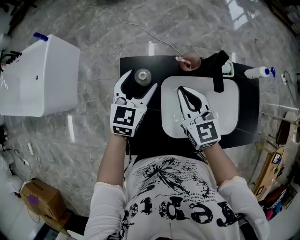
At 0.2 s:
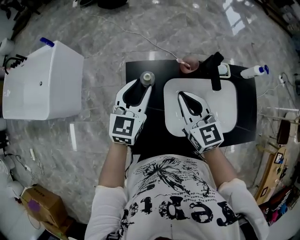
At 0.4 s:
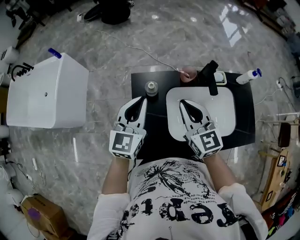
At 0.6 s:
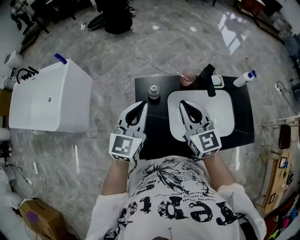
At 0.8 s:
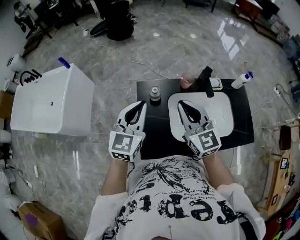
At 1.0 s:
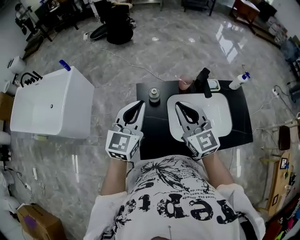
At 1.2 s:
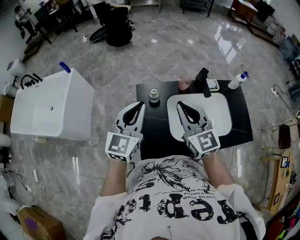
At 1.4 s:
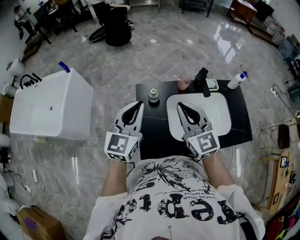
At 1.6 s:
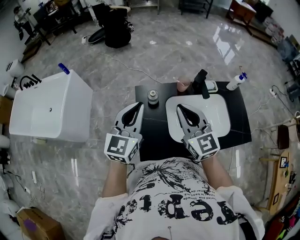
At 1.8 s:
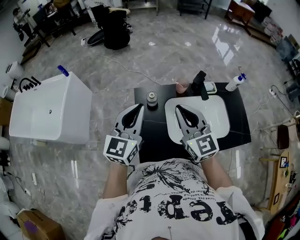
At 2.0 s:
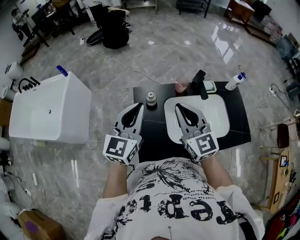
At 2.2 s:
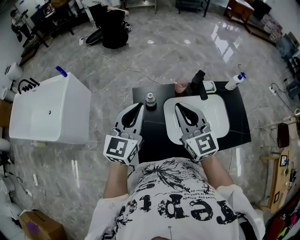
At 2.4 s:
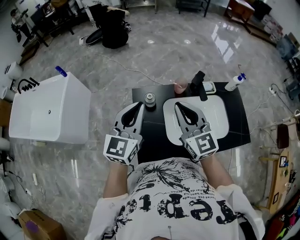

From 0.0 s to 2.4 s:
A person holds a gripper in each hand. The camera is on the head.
From 0.0 s to 1.2 s: The grippers both shift upward and backward by some 25 cm. The left gripper closes its fingers.
From 1.2 s to 2.4 s: The grippers make only small movements.

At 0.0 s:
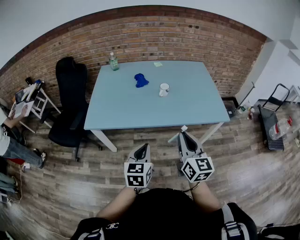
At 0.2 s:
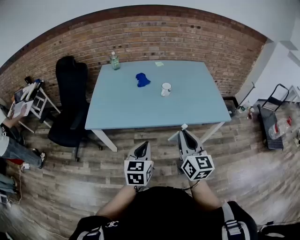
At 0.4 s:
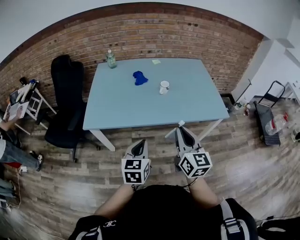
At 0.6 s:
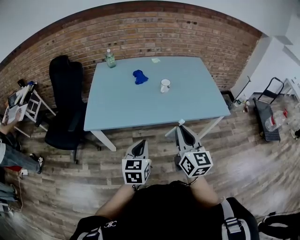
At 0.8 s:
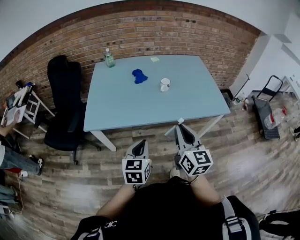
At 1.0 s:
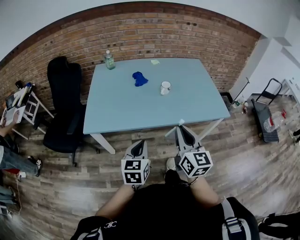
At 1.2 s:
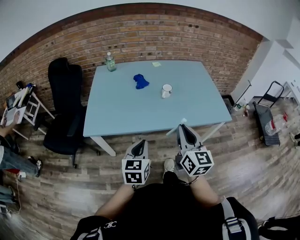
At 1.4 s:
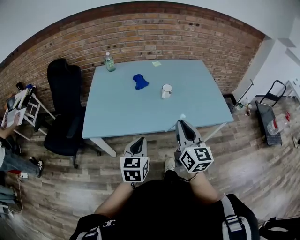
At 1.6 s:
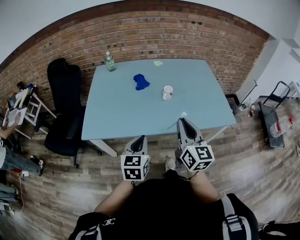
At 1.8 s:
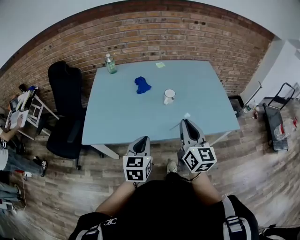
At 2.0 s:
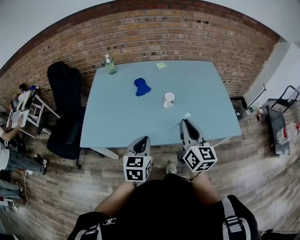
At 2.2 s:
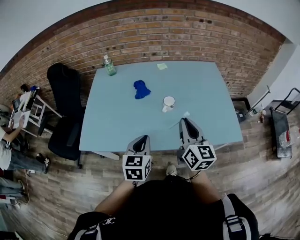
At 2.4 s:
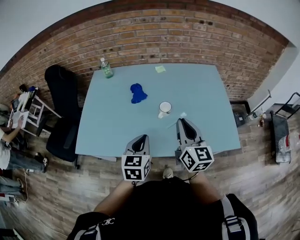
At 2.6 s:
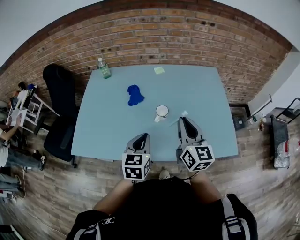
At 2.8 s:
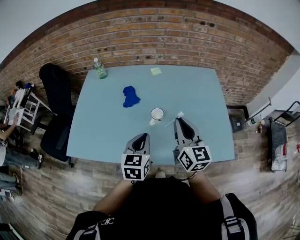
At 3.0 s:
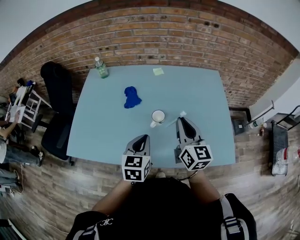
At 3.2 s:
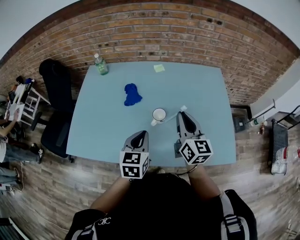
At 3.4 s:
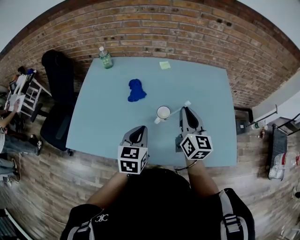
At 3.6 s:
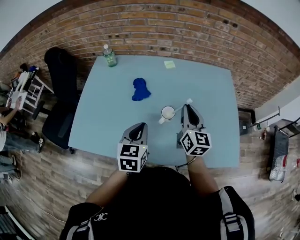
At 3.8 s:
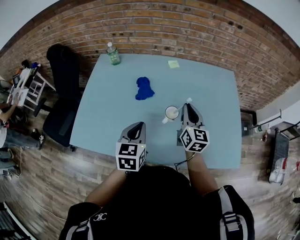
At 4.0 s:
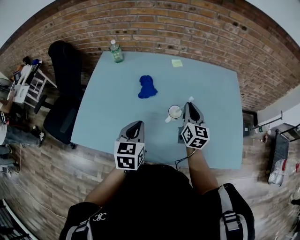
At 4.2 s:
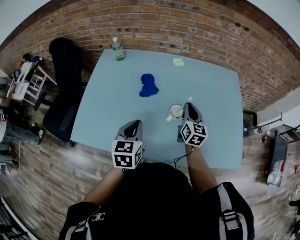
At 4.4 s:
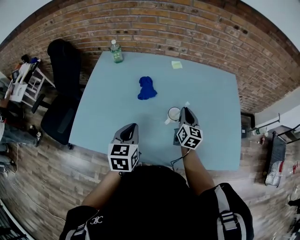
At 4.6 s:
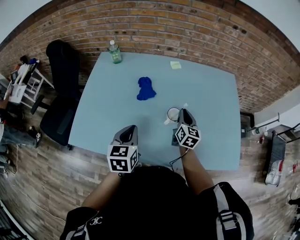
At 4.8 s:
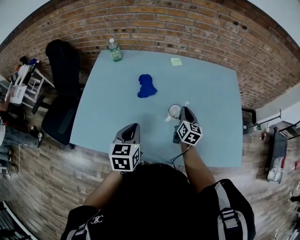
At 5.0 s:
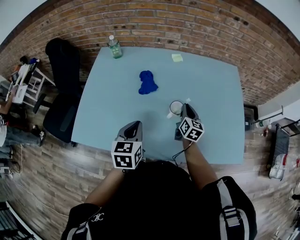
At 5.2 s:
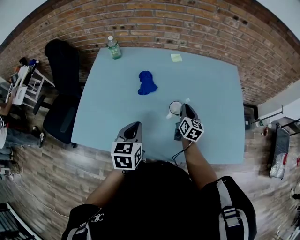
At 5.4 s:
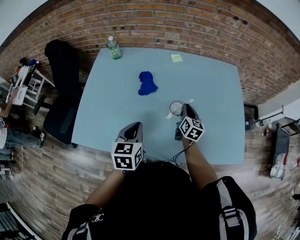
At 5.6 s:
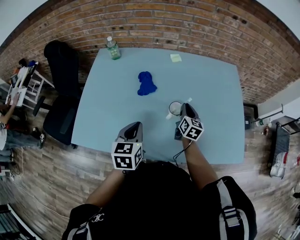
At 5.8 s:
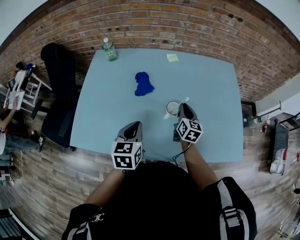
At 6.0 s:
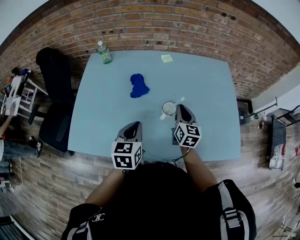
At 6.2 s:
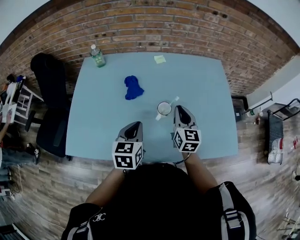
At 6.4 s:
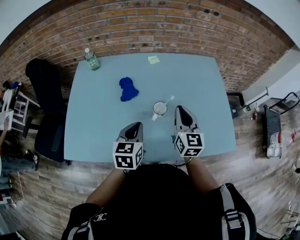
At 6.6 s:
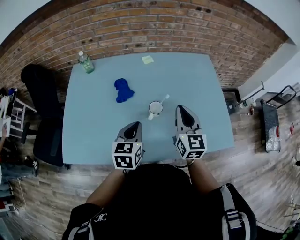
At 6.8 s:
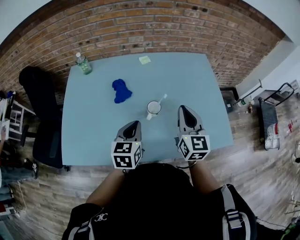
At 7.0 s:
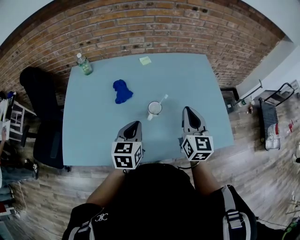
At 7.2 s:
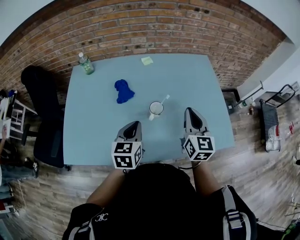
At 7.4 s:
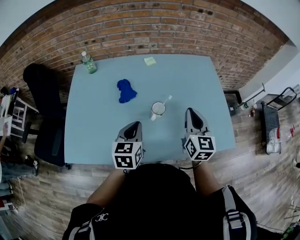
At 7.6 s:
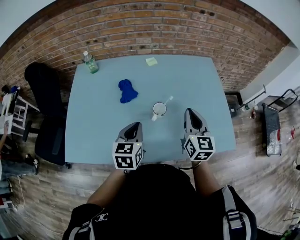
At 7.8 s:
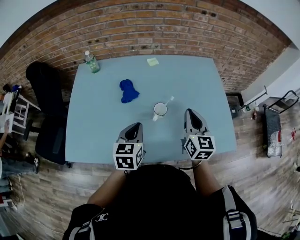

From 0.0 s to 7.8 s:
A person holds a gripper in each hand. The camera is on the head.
From 0.0 s to 1.6 s: The grippers both shift forward and to the left by approximately 15 cm.
From 1.6 s to 3.2 s: The right gripper travels forward by some 30 cm. Meanwhile the left gripper moves forward and to the right, roughly 30 cm.
From 3.2 s to 4.6 s: The left gripper heads to the left, covering approximately 10 cm. The right gripper is displaced downward and forward by about 20 cm.
From 4.6 s to 6.2 s: The left gripper goes roughly 5 cm to the right. The right gripper heads upward, covering about 5 cm.
From 6.2 s to 7.8 s: The right gripper goes some 10 cm upward and to the right.

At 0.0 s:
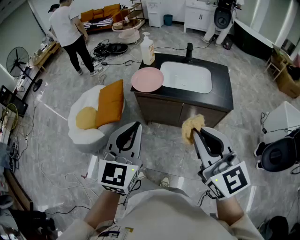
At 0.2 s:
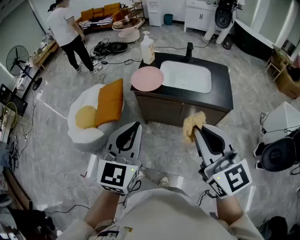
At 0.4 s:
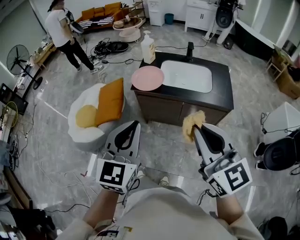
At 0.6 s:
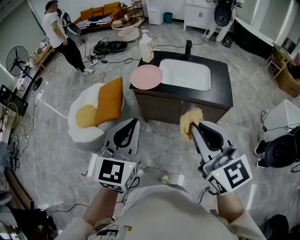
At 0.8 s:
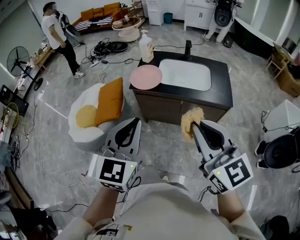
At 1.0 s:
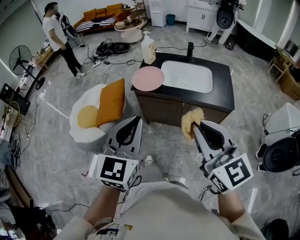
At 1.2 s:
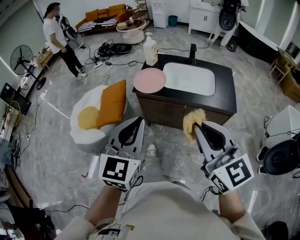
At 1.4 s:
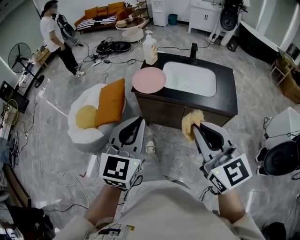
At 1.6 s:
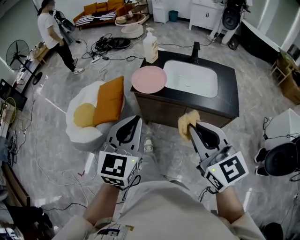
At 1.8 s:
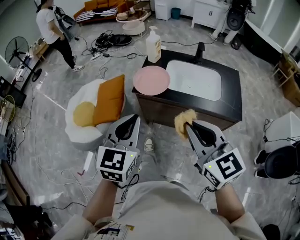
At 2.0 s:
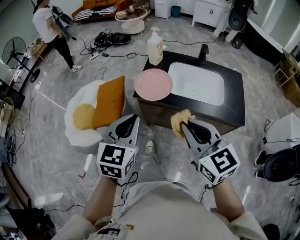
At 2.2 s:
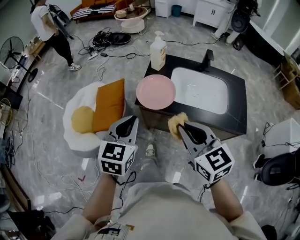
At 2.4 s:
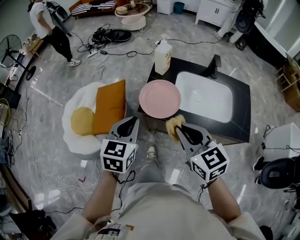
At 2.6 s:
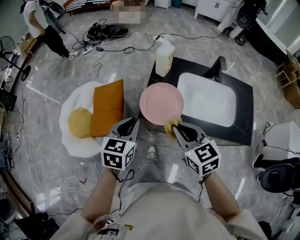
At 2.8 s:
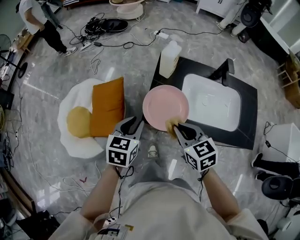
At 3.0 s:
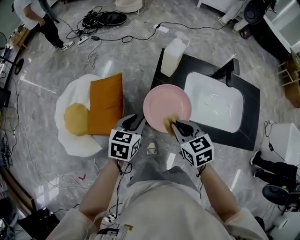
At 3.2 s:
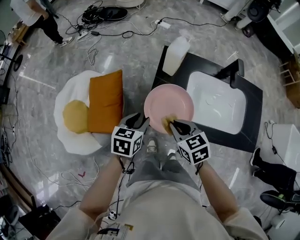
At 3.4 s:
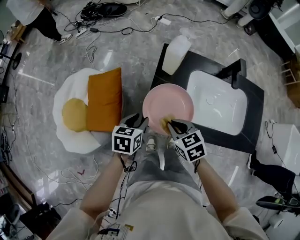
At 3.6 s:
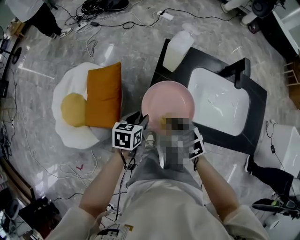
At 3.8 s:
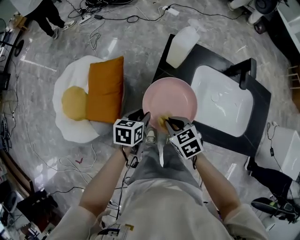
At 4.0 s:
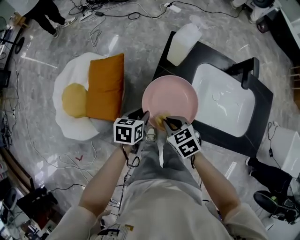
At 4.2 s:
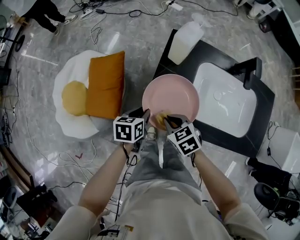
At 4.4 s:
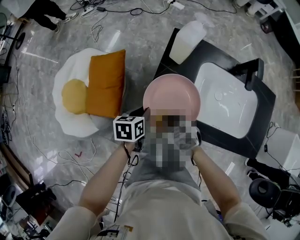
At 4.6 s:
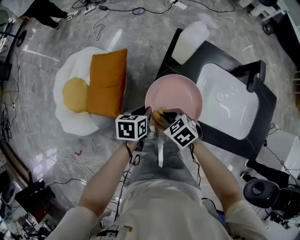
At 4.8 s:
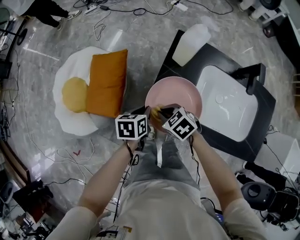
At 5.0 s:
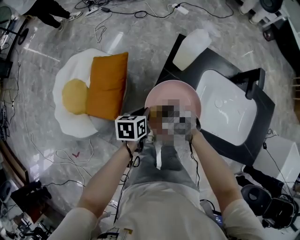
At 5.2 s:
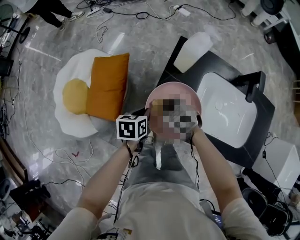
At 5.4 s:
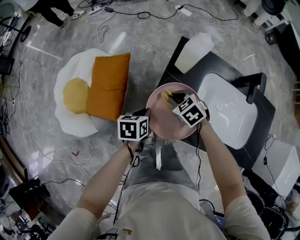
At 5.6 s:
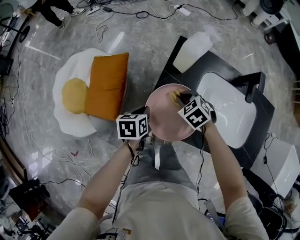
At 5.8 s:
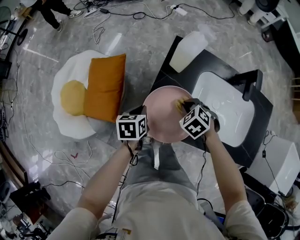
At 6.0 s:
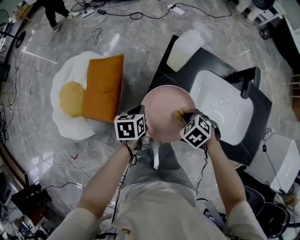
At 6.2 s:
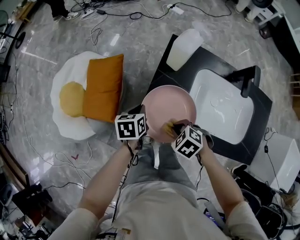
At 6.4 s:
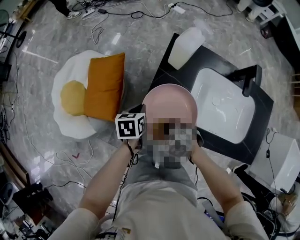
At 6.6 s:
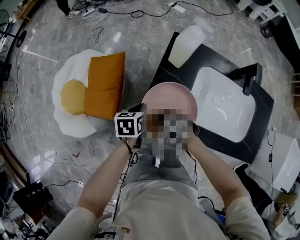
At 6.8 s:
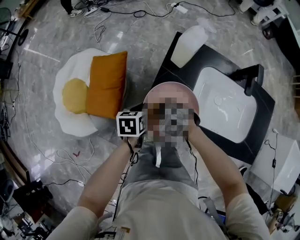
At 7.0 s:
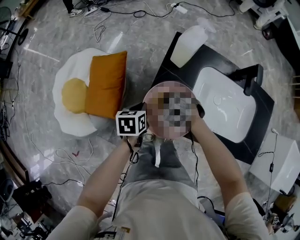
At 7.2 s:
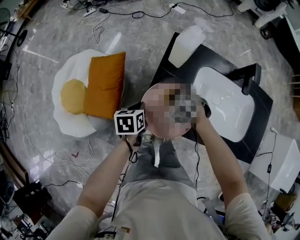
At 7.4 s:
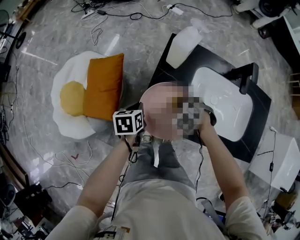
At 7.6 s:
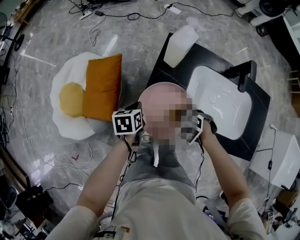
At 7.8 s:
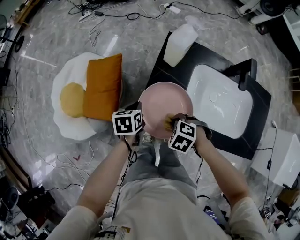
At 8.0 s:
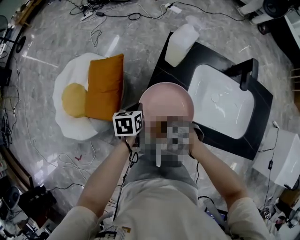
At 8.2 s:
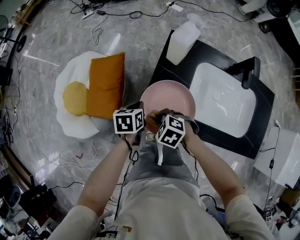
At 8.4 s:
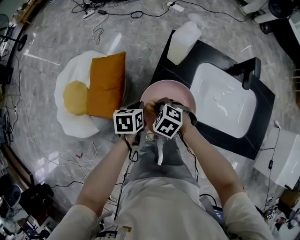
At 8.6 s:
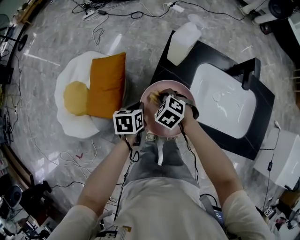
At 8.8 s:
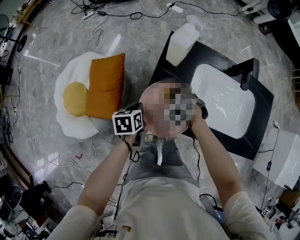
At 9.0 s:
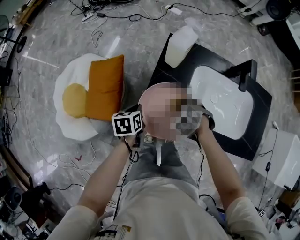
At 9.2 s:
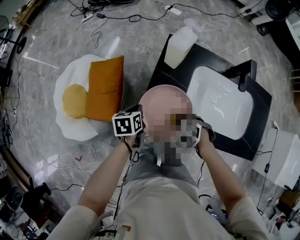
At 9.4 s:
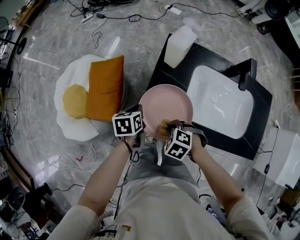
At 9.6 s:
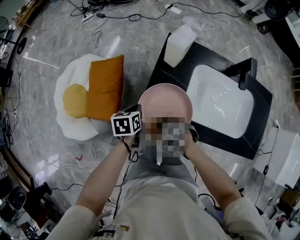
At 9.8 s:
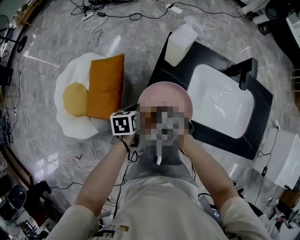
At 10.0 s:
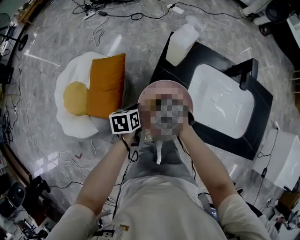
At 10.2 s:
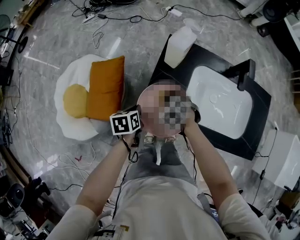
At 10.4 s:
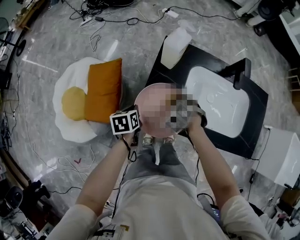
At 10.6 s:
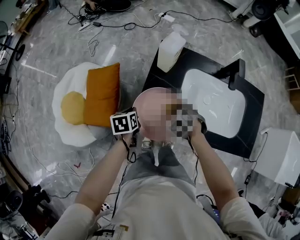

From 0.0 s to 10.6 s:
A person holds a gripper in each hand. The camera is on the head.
From 0.0 s to 1.6 s: The right gripper travels forward and downward by some 10 cm. Meanwhile the left gripper is displaced forward by roughly 10 cm.
From 1.6 s to 3.0 s: The two grippers travel together, forward, about 40 cm. The grippers both shift downward by about 25 cm. The right gripper tilts its fingers approximately 30 degrees downward, while the left gripper angles its fingers downward, by roughly 30 degrees, and opens.
From 3.0 s to 4.6 s: Both grippers travel together downward, about 15 cm. The right gripper swivels roughly 30 degrees, while the left gripper swivels roughly 30 degrees.
From 4.6 s to 6.0 s: The right gripper shifts by some 10 cm, and swivels roughly 20 degrees.

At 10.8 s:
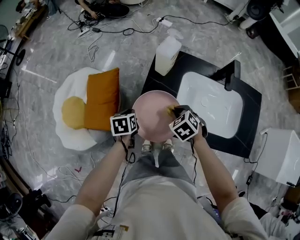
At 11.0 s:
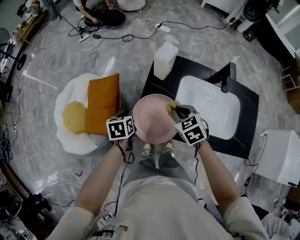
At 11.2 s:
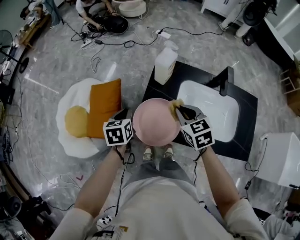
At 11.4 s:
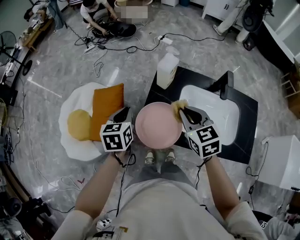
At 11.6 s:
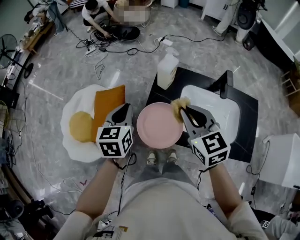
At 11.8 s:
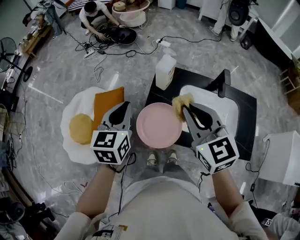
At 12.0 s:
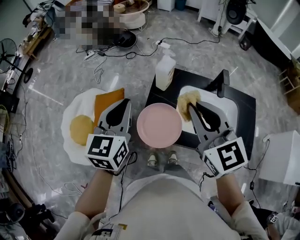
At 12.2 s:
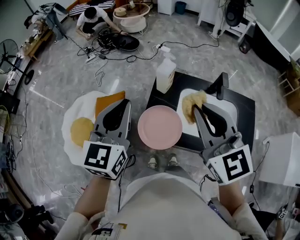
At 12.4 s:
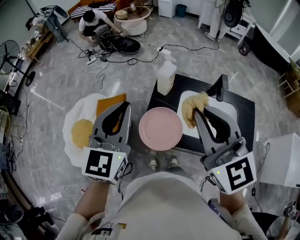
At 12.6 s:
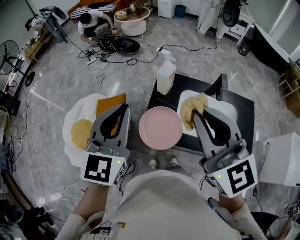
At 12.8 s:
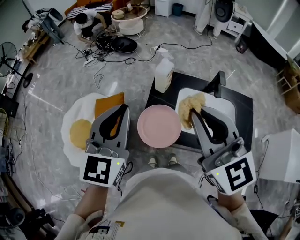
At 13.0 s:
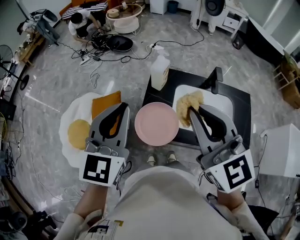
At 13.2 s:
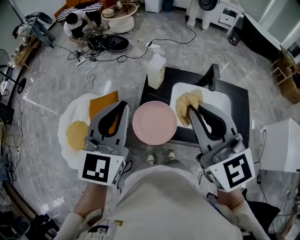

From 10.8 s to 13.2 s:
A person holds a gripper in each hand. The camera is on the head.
From 10.8 s to 12.0 s: The grippers both shift upward by some 35 cm. The left gripper angles its fingers upward, by about 40 degrees, while the right gripper tilts its fingers some 50 degrees upward.
From 12.0 s to 13.2 s: The two grippers go approximately 10 cm upward and backward.
